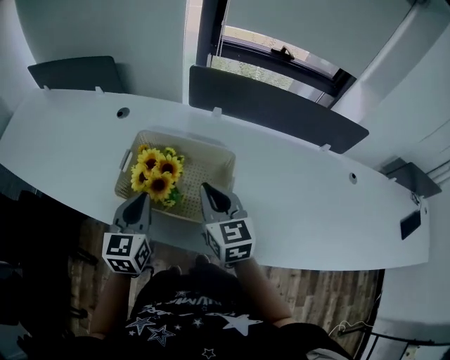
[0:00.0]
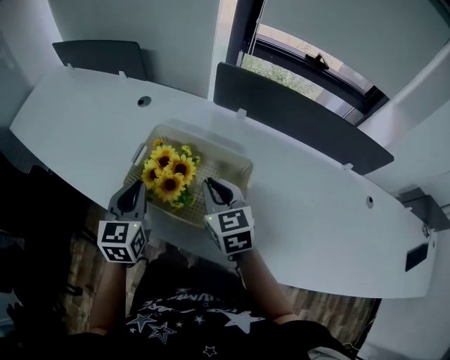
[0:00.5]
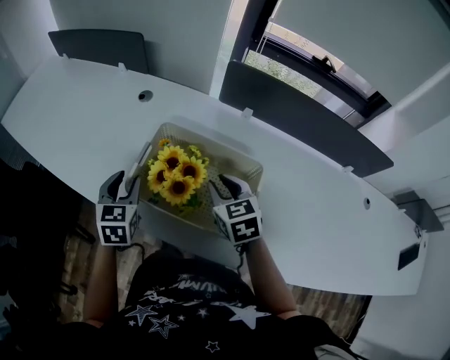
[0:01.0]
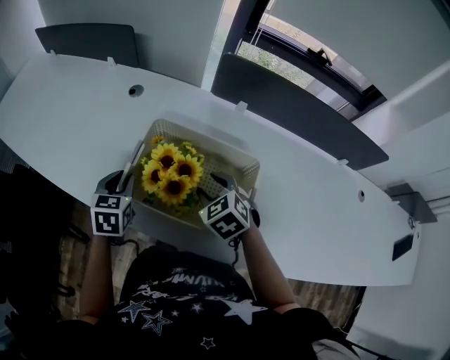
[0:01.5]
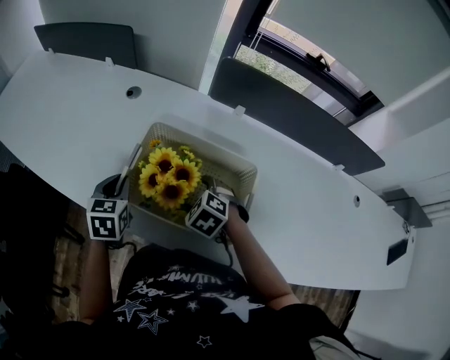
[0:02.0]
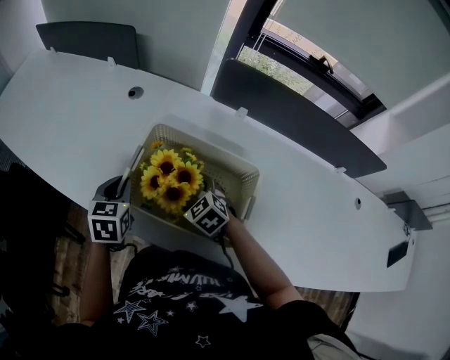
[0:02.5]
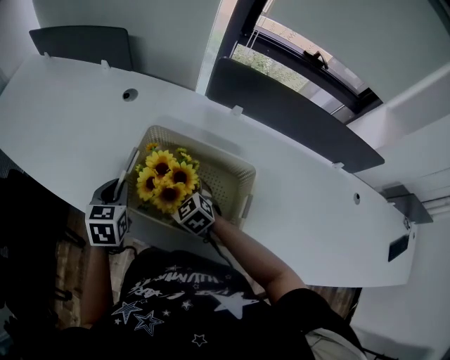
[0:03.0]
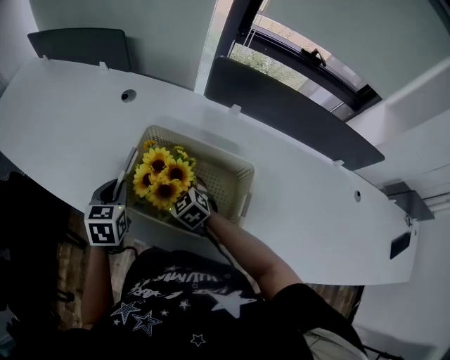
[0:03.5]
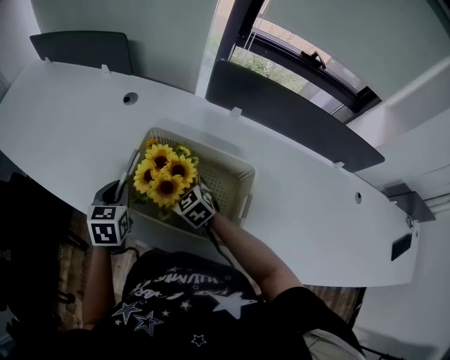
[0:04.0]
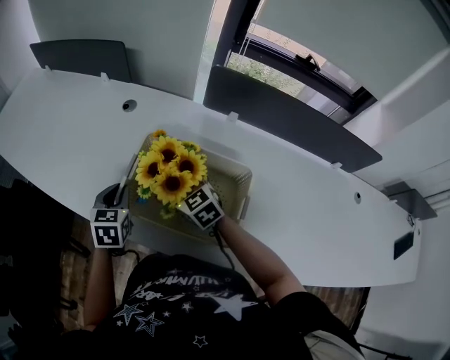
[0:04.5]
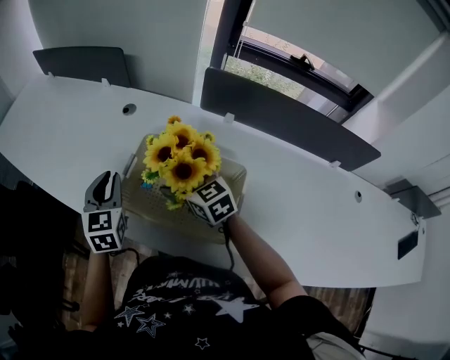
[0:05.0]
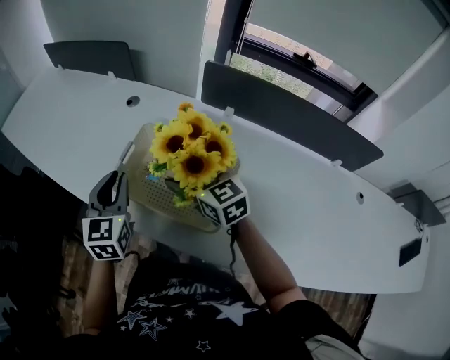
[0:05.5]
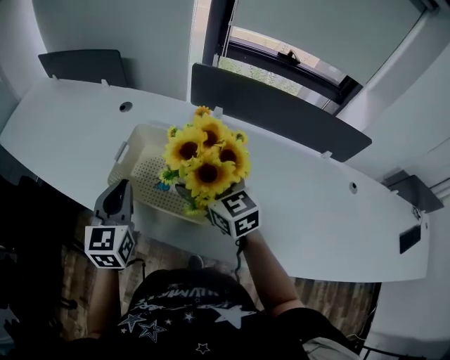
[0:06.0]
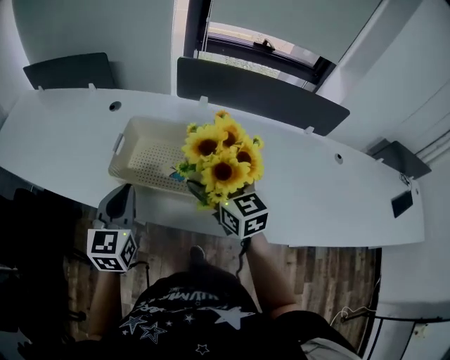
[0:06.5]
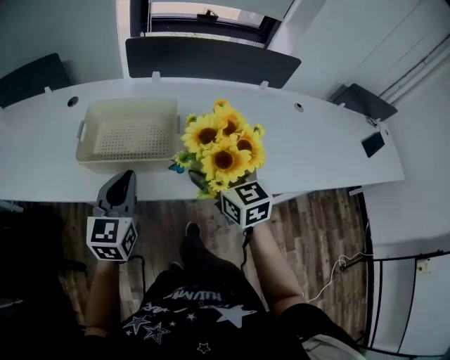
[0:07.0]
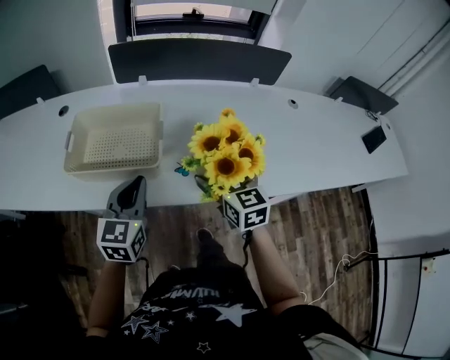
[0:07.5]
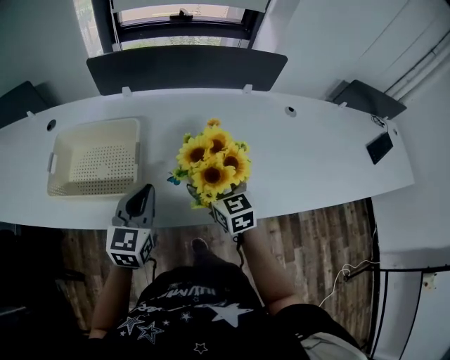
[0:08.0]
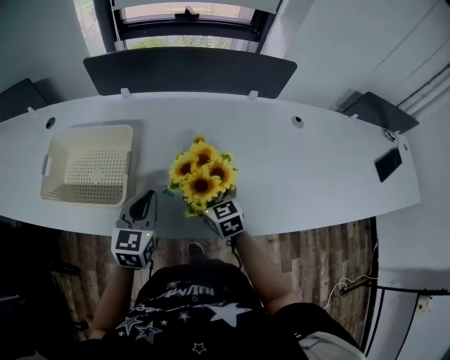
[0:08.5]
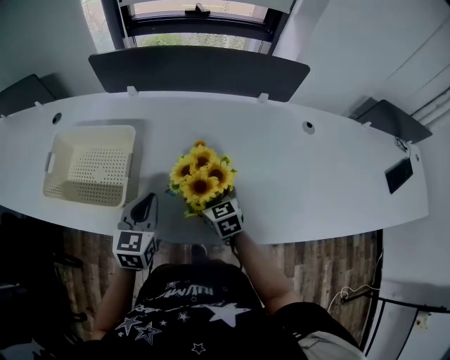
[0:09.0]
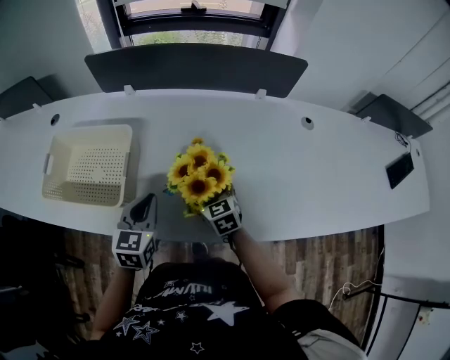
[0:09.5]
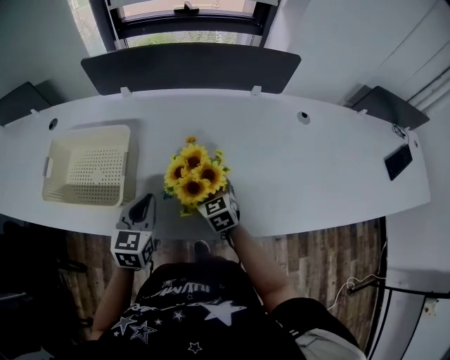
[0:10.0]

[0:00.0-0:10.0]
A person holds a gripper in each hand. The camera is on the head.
0:00.0 to 0:02.0: The right gripper travels downward by roughly 15 cm, tips its fingers downward by about 50 degrees, and opens its fingers. Meanwhile the left gripper travels forward, to the left and downward by some 15 cm, turns by some 30 degrees, and opens, then closes again.
0:02.0 to 0:04.0: The right gripper travels forward and to the left by roughly 10 cm, changes its angle by approximately 30 degrees, and opens.
0:04.0 to 0:06.0: The left gripper goes roughly 20 cm upward, backward and to the right, and swivels some 30 degrees, while the right gripper shifts approximately 25 cm upward, to the right and backward, and turns by roughly 30 degrees.
0:06.0 to 0:08.0: The left gripper moves roughly 30 cm, and changes its angle by roughly 30 degrees; the right gripper shifts by some 30 cm, and changes its angle by some 30 degrees.
0:08.0 to 0:10.0: The right gripper travels downward by about 10 cm. Meanwhile the left gripper shifts roughly 5 cm downward.

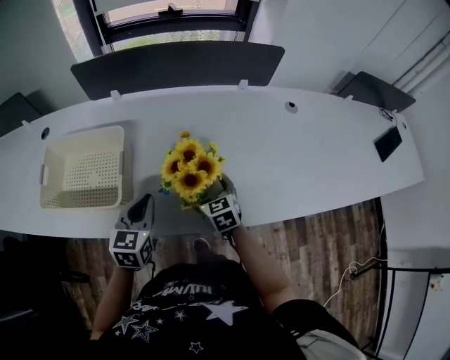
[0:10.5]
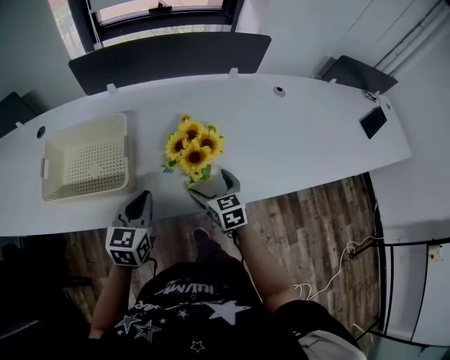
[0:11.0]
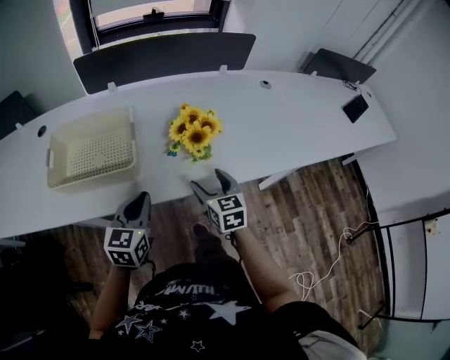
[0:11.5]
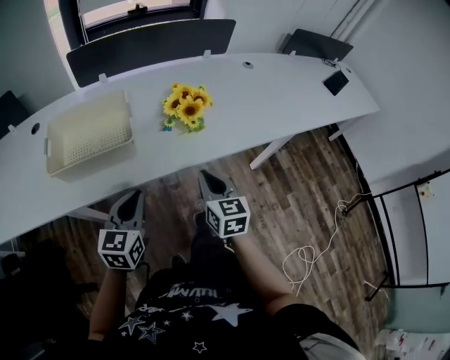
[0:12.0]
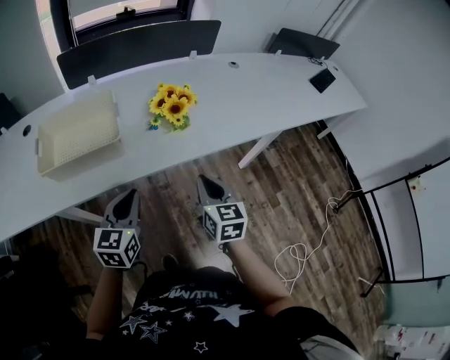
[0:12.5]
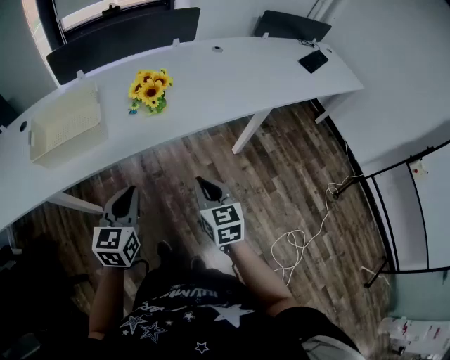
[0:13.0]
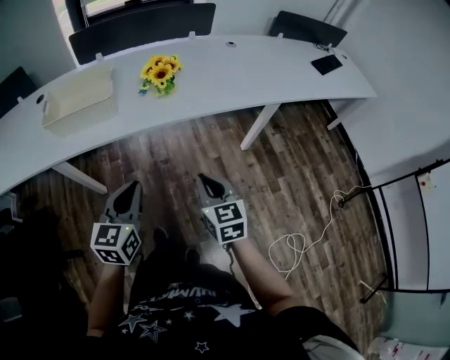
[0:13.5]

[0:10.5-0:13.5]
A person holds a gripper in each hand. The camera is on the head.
0:10.5 to 0:12.0: The left gripper heads backward and to the left, covering about 20 cm. Meanwhile the right gripper heads backward and upward, covering about 25 cm, swivels about 30 degrees, and closes up.
0:12.0 to 0:13.5: Both grippers move backward and to the right, some 25 cm.

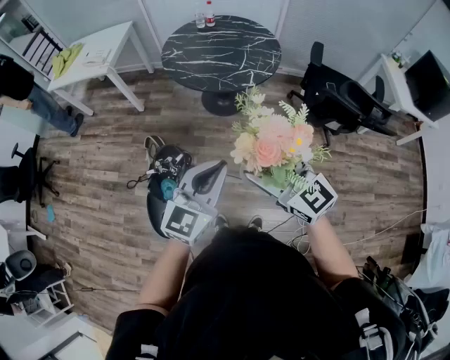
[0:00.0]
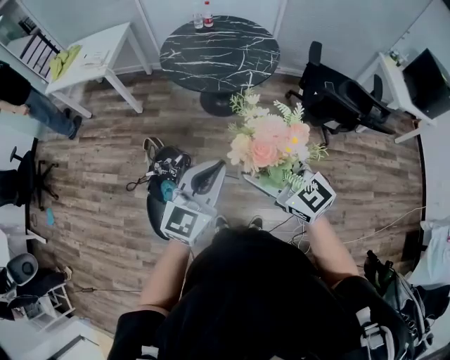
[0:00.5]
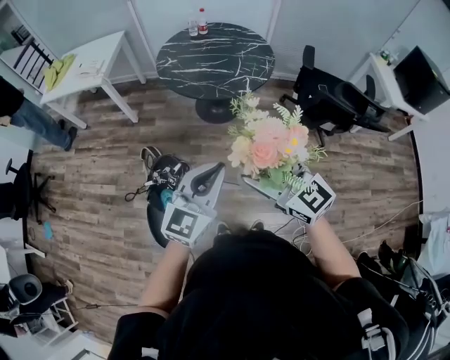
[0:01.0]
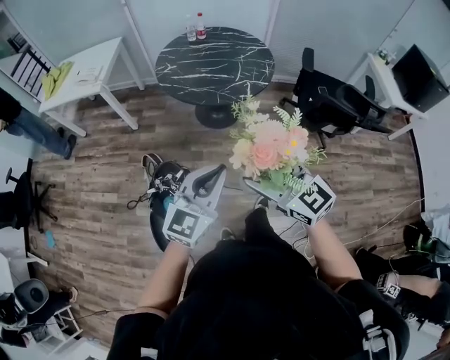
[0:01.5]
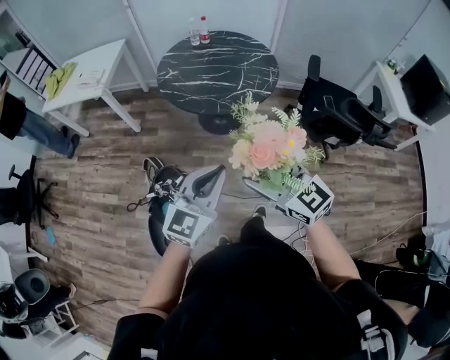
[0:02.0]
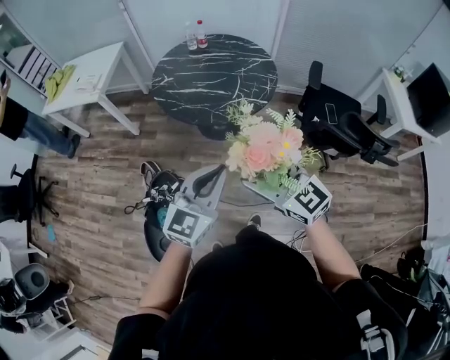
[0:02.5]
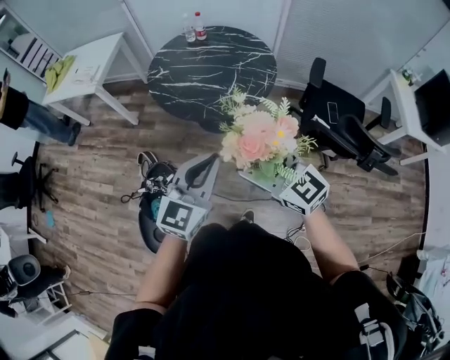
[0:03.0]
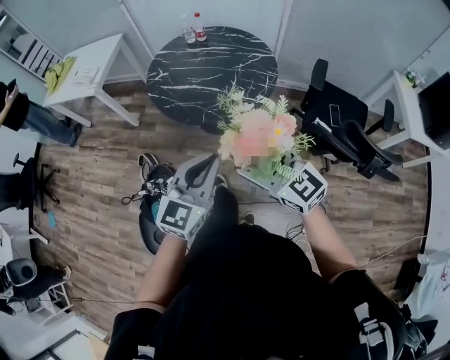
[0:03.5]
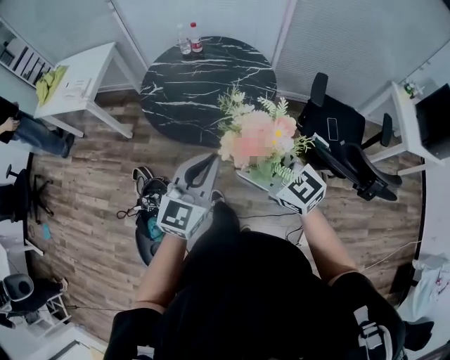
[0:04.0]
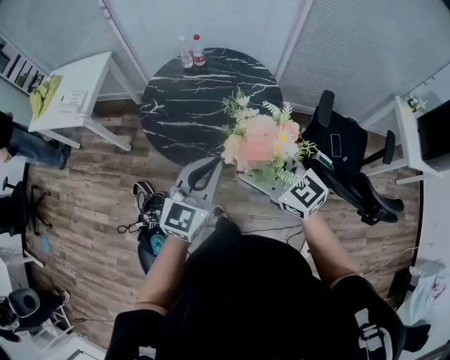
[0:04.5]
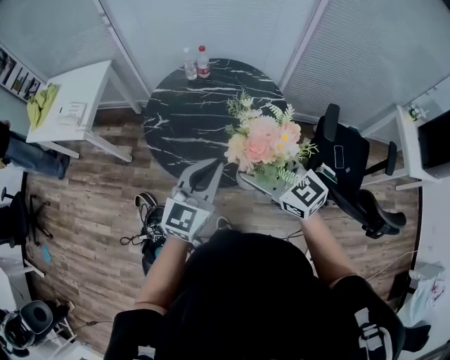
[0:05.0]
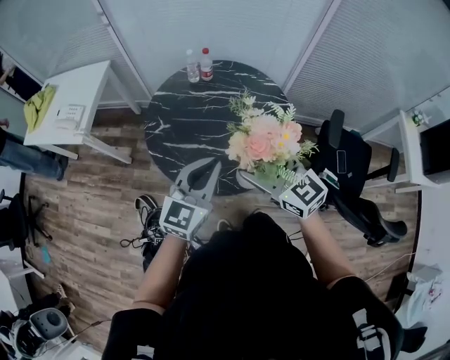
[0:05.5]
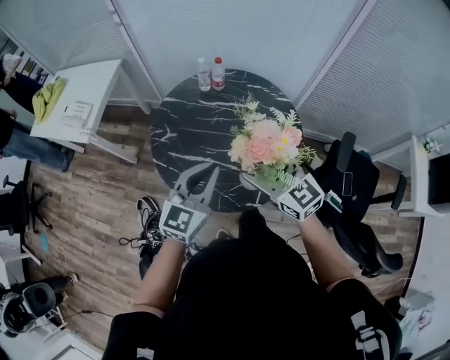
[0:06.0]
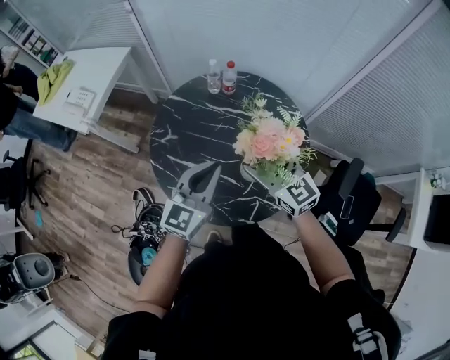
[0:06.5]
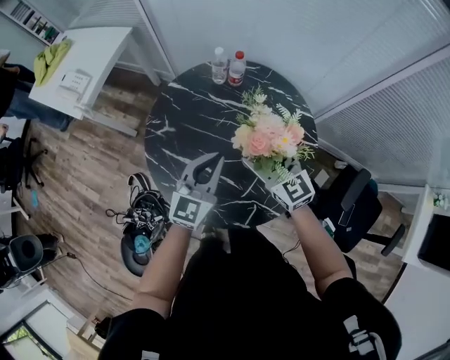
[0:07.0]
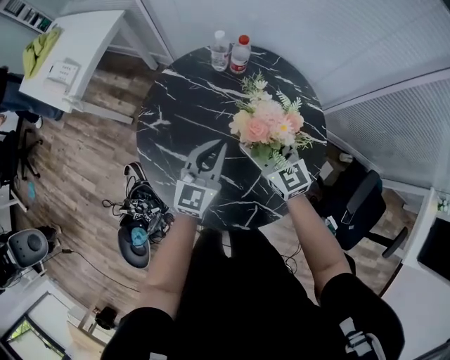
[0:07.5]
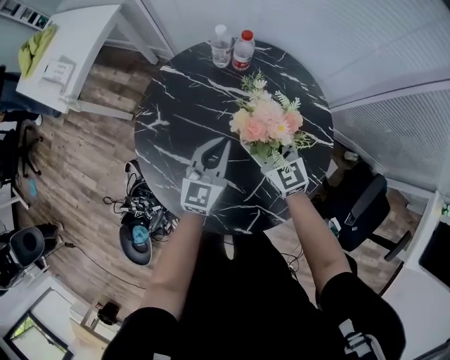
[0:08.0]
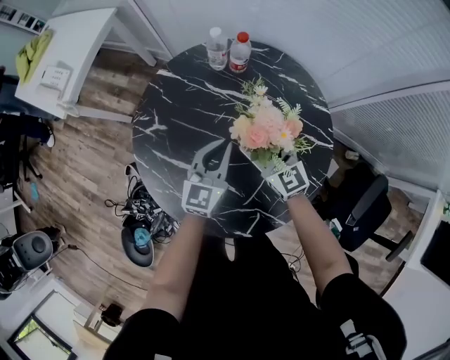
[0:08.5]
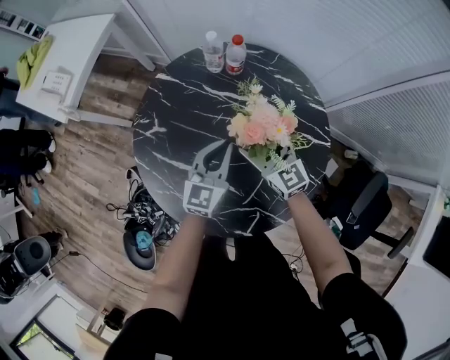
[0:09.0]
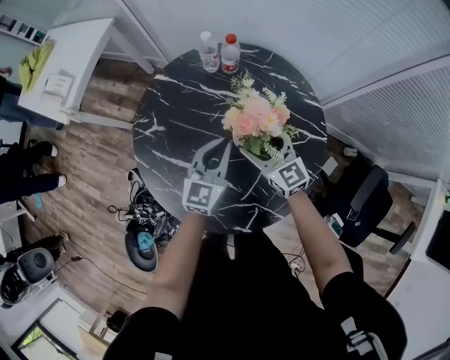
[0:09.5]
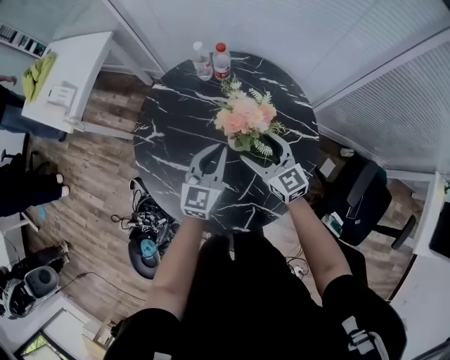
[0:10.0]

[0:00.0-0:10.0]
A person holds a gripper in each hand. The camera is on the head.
0:00.0 to 0:02.0: Both grippers travel together forward, about 10 cm.
0:02.0 to 0:04.0: The grippers both shift forward and to the right by about 25 cm.
0:04.0 to 0:06.0: Both grippers move forward, approximately 35 cm.
0:06.0 to 0:08.0: The right gripper goes approximately 35 cm forward and downward; the left gripper is displaced downward and forward by roughly 30 cm.
0:08.0 to 0:10.0: The right gripper is displaced backward by about 5 cm. The left gripper moves approximately 5 cm.

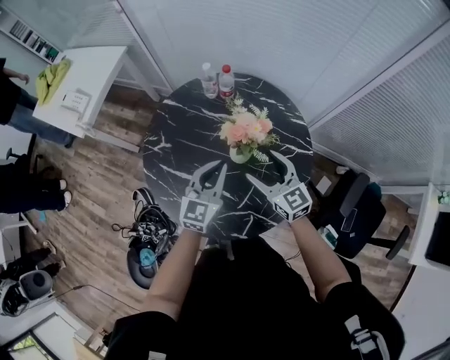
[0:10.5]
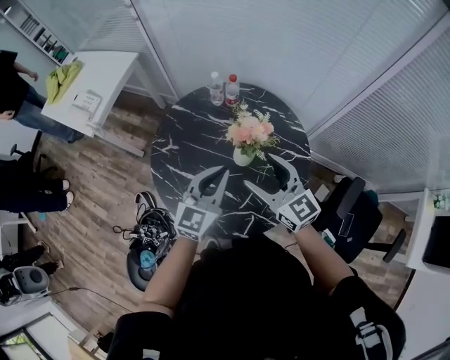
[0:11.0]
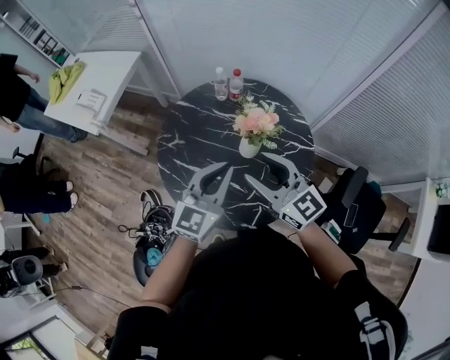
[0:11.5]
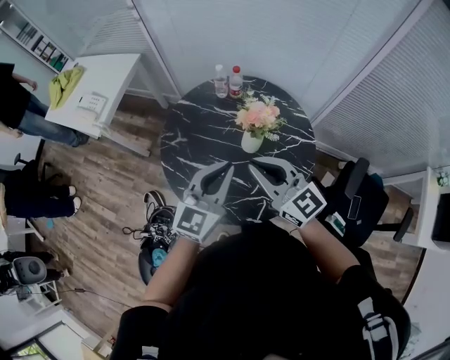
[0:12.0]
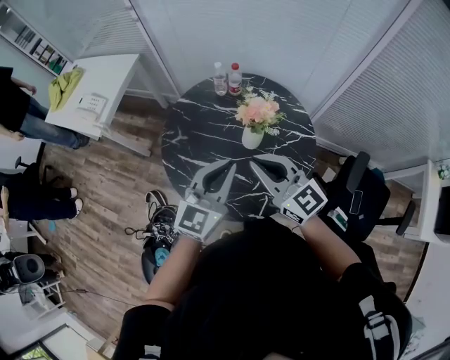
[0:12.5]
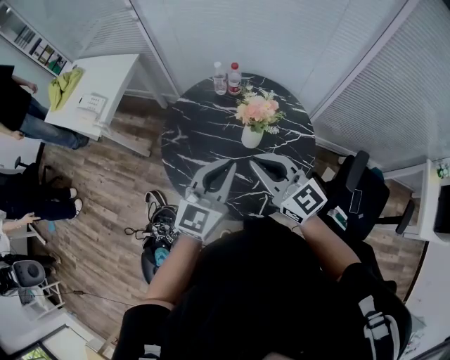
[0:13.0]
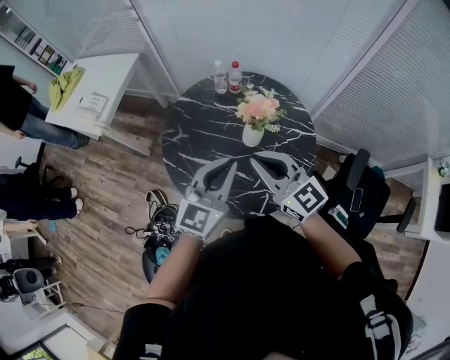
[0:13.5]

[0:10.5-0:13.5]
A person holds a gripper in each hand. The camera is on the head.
0:10.5 to 0:12.0: The right gripper heads upward, to the left and backward, covering some 20 cm, and closes up. Meanwhile the left gripper goes approximately 20 cm upward and backward.
0:12.0 to 0:13.5: The grippers stay close to where they were, moving slightly.
